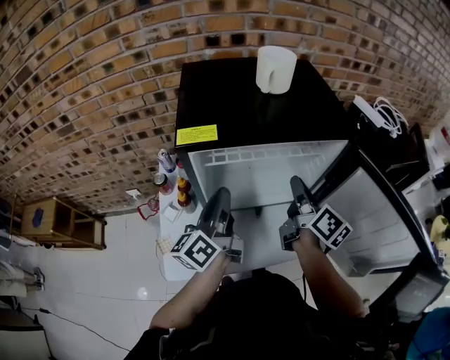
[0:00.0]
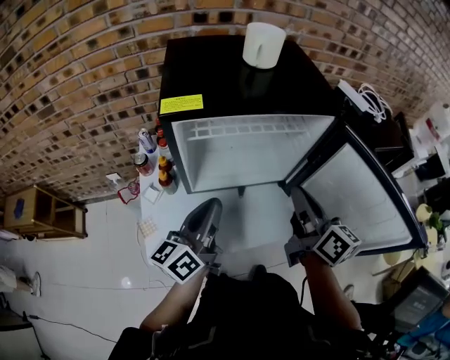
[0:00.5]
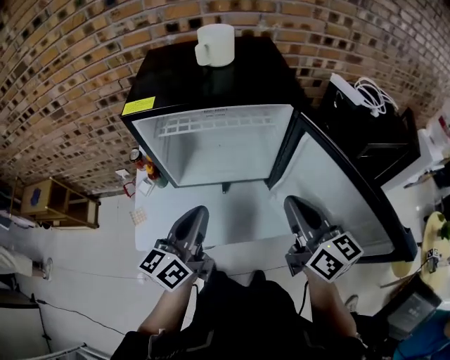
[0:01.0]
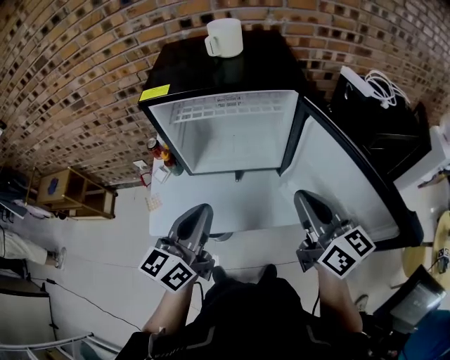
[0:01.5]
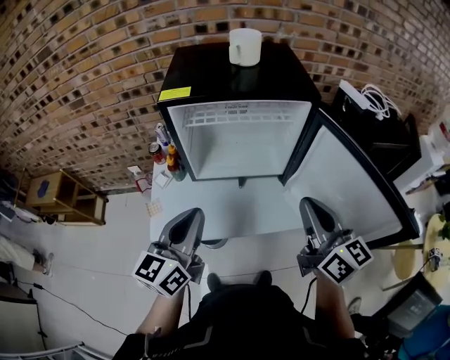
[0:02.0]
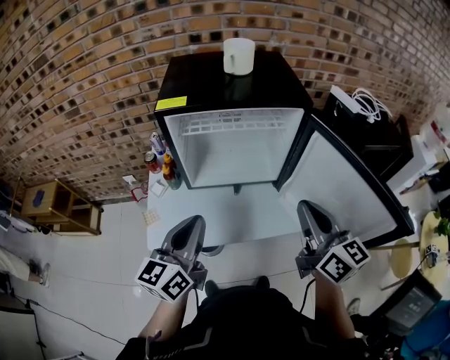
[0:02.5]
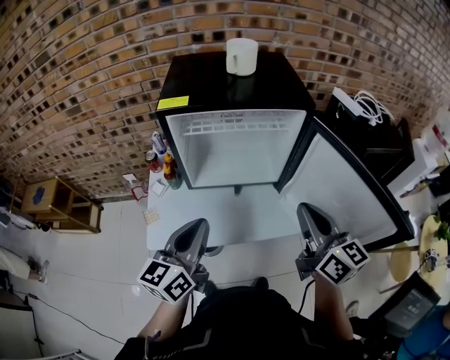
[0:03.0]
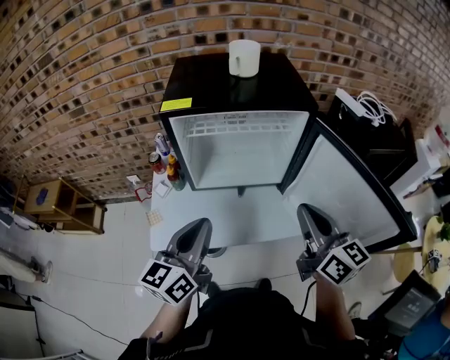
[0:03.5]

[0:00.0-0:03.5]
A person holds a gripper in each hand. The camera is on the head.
0:00.0 to 0:02.0: The two grippers go about 20 cm backward. The right gripper rotates some 30 degrees. The left gripper turns by about 30 degrees.
0:02.0 to 0:03.5: The grippers move only a little.

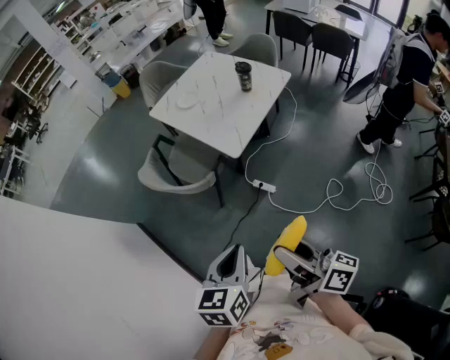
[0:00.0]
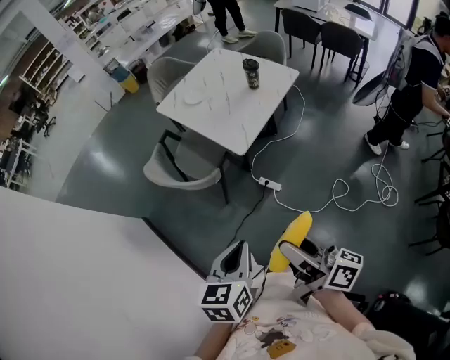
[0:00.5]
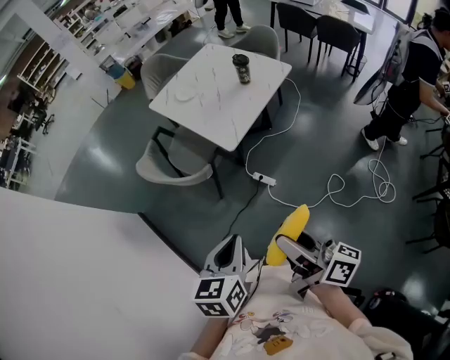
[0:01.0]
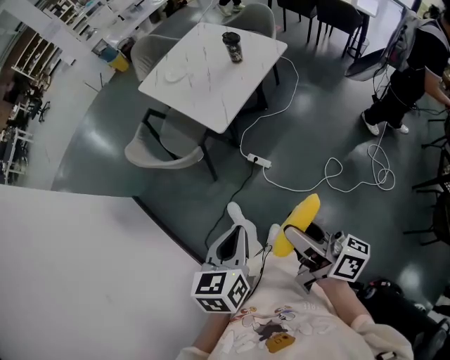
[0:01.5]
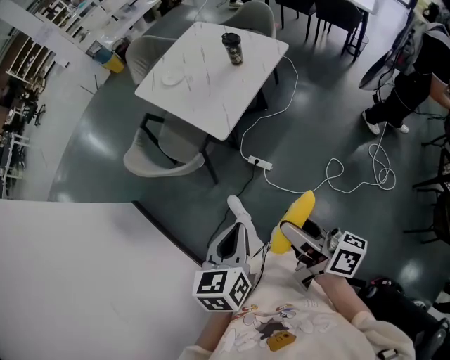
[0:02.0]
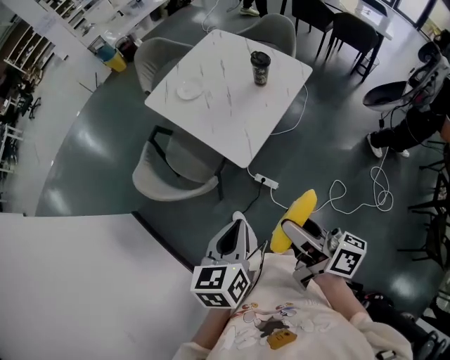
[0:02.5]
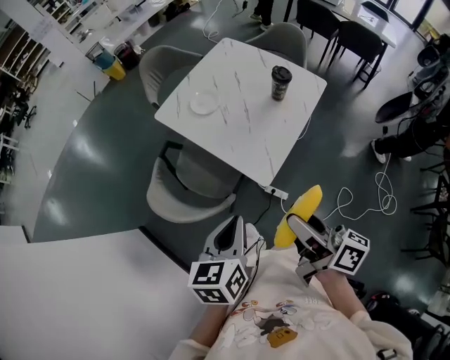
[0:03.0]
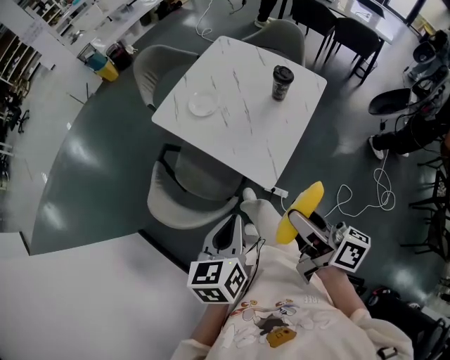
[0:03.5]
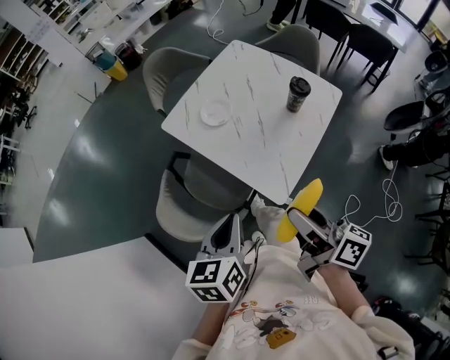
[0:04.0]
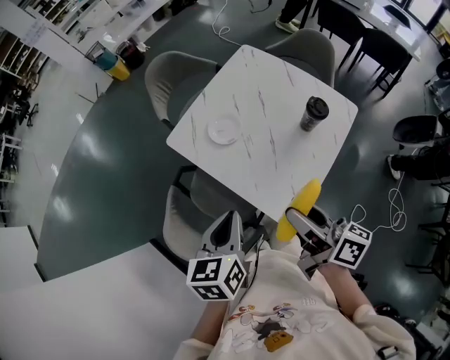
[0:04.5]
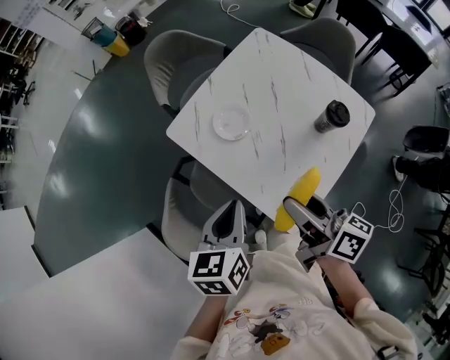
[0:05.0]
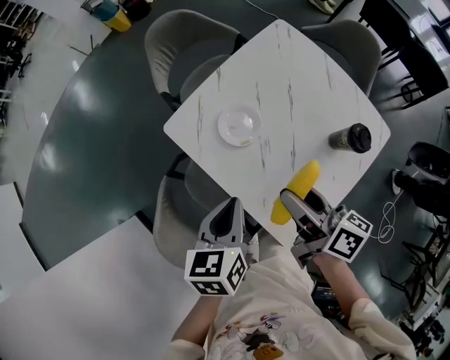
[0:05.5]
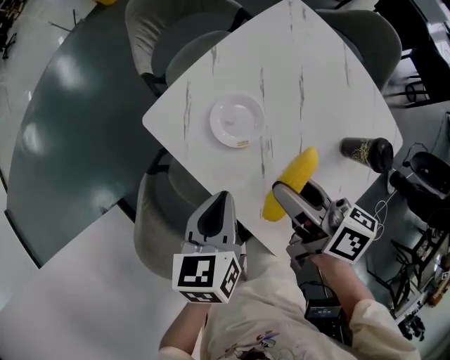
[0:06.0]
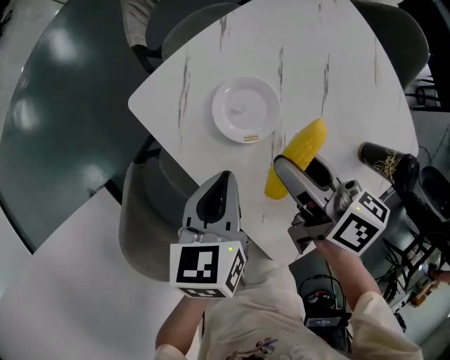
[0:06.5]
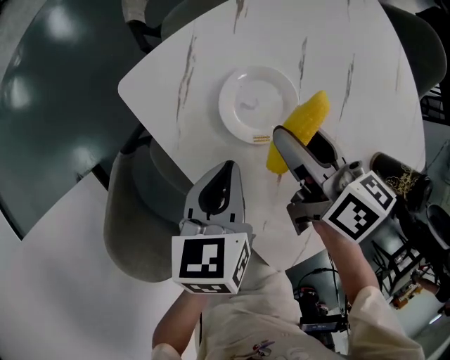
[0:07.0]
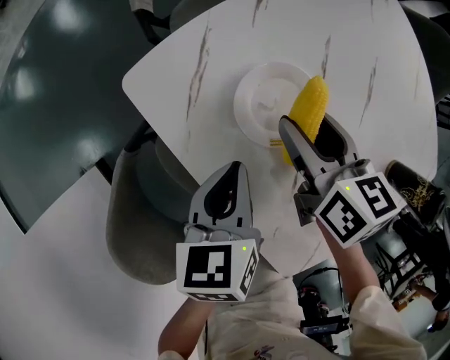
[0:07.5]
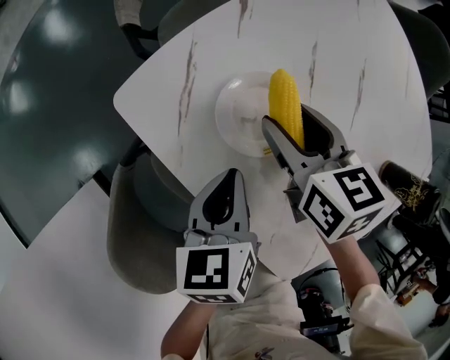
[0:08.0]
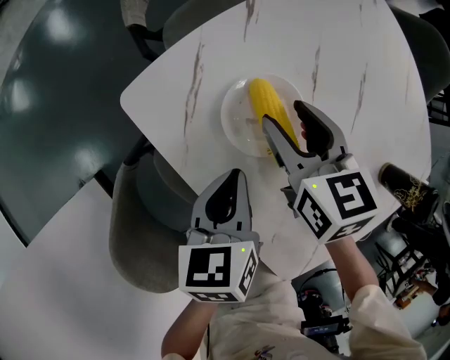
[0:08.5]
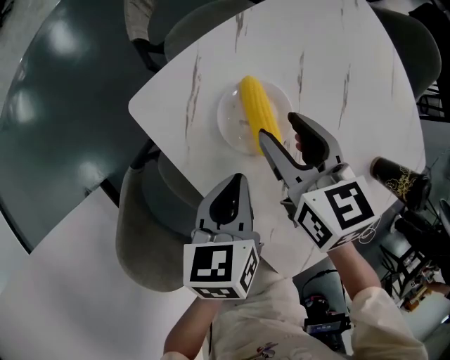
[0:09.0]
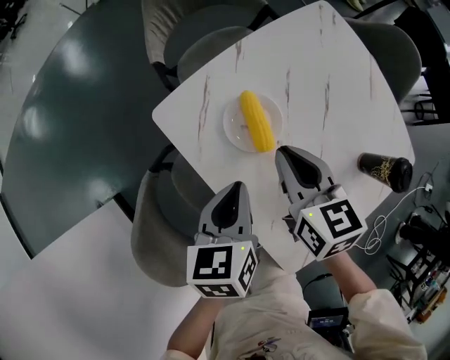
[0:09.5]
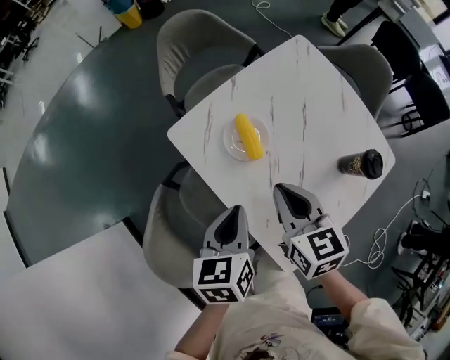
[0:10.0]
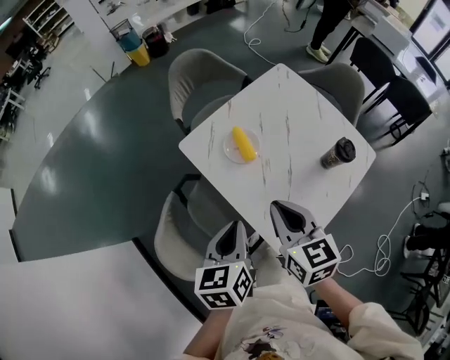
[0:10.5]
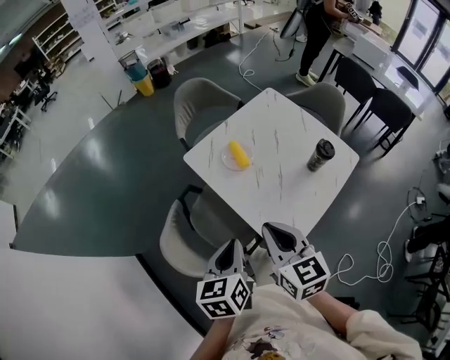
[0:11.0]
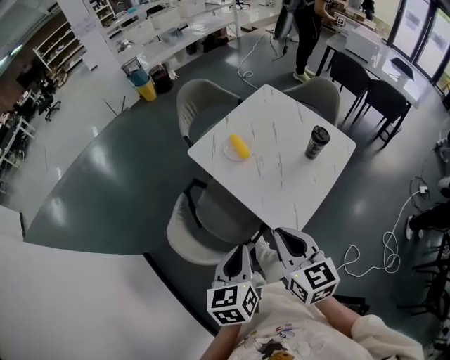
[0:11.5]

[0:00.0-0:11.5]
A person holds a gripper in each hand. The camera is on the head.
0:00.0 to 0:02.0: The right gripper is displaced to the right and forward by roughly 10 cm; the left gripper heads to the right, covering approximately 10 cm.
0:02.0 to 0:04.0: The two grippers travel together, forward and to the left, approximately 40 cm.
0:04.0 to 0:06.0: The grippers both shift forward and downward by approximately 40 cm. The right gripper turns by approximately 20 degrees.
0:06.0 to 0:07.5: The left gripper moves downward, about 15 cm. Meanwhile the right gripper shifts roughly 20 cm downward and forward, and rotates approximately 30 degrees.
0:07.5 to 0:09.5: Both grippers move upward, some 10 cm. The right gripper closes up.
0:09.5 to 0:11.5: Both grippers move backward and upward, roughly 40 cm.

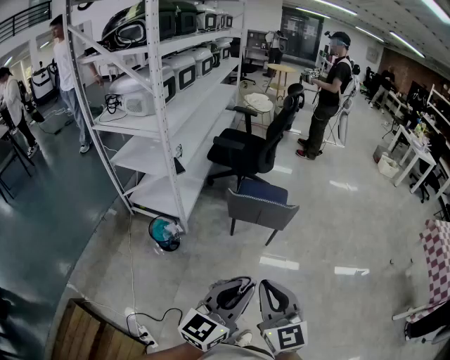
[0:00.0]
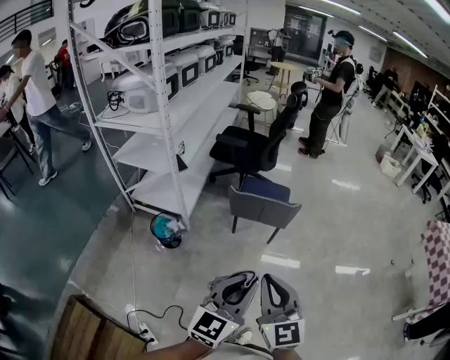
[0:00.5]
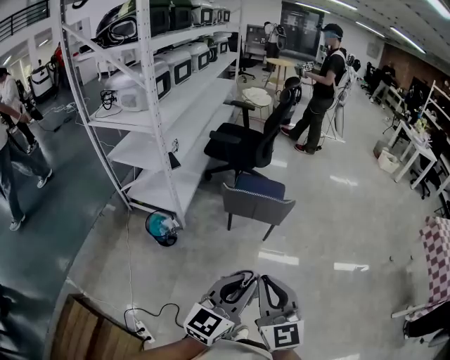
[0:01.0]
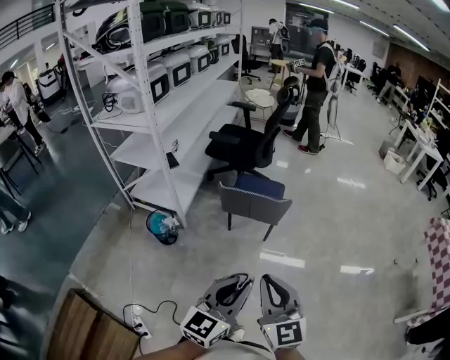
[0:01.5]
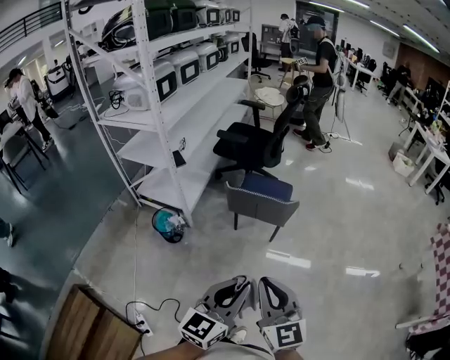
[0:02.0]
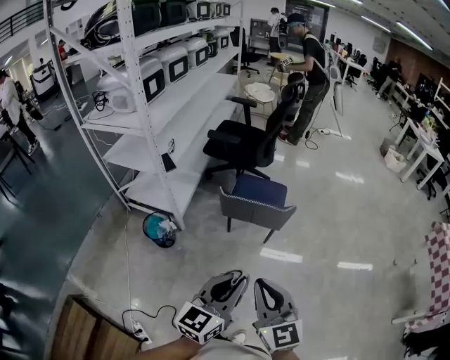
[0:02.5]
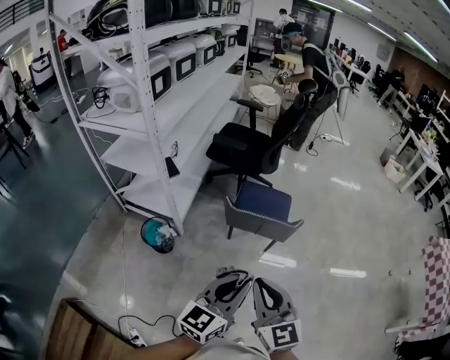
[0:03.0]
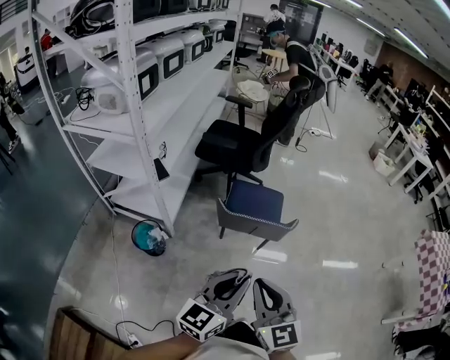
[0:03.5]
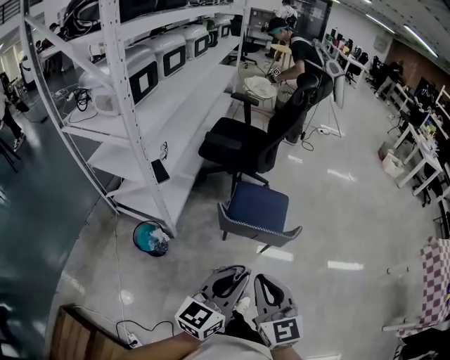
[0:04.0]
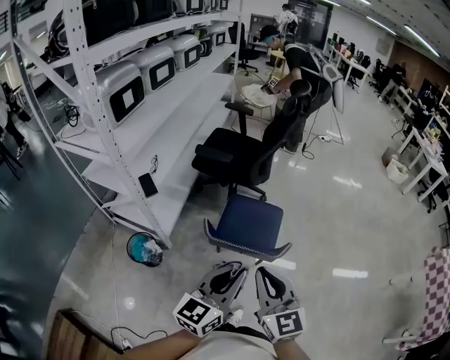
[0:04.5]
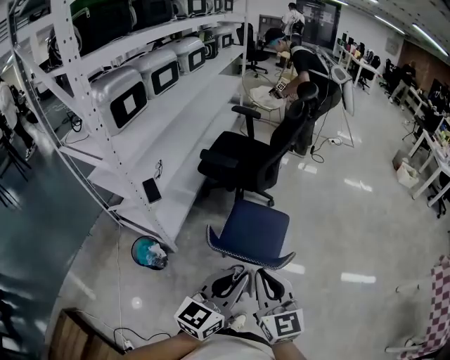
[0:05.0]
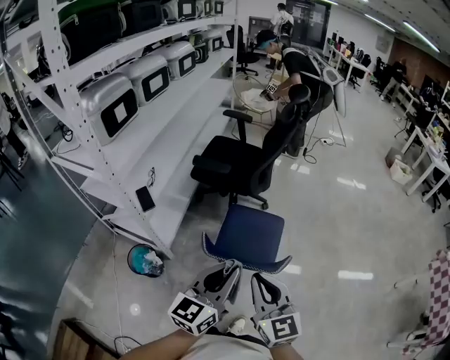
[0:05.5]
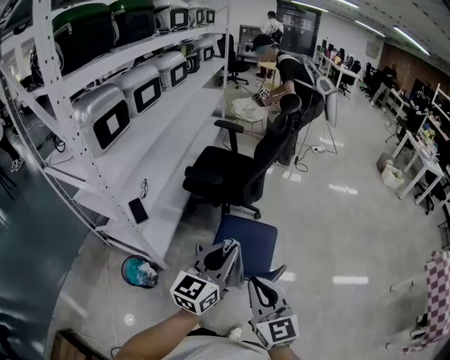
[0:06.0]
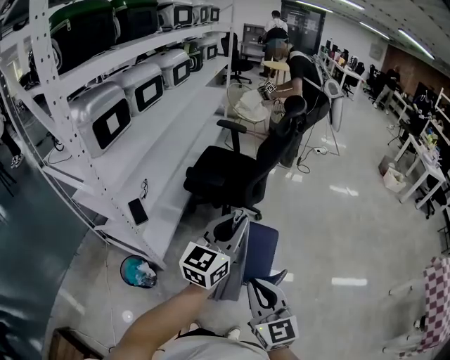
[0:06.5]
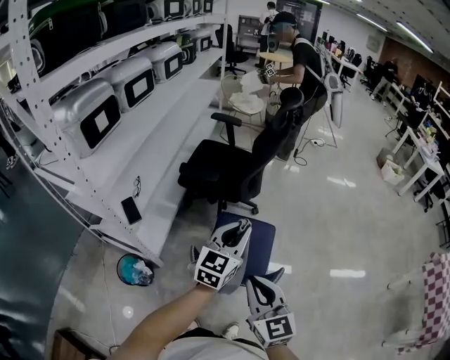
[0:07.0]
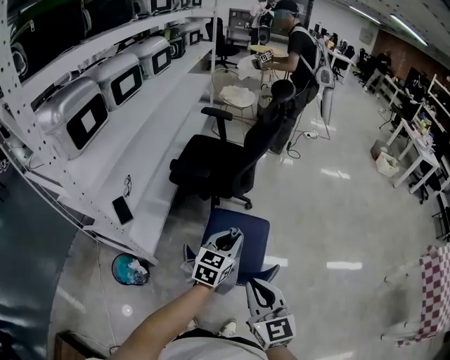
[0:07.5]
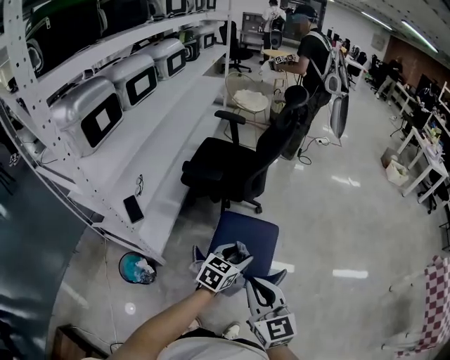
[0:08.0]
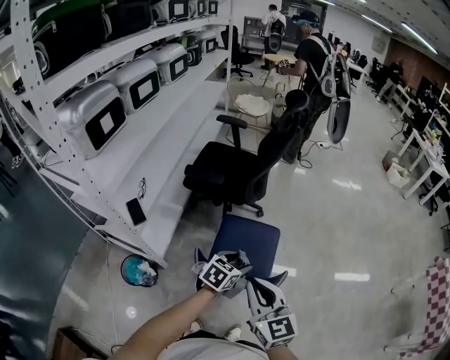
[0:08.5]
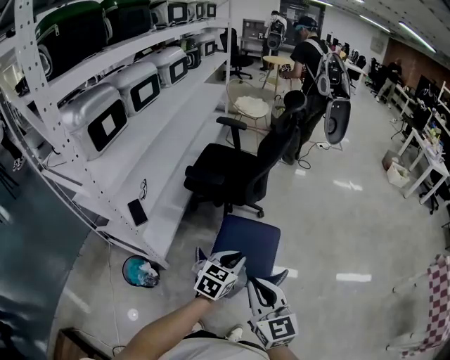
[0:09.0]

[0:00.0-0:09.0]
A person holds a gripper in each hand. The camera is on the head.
0:00.0 to 0:02.0: Both grippers travel together to the right, some 10 cm.
0:02.0 to 0:04.5: Both grippers move forward, approximately 30 cm.
0:04.5 to 0:07.0: The left gripper shifts roughly 25 cm forward. The right gripper moves forward, some 10 cm.
0:07.0 to 0:09.0: The left gripper shifts about 15 cm downward and backward, turns by roughly 20 degrees, and opens, then closes once more.

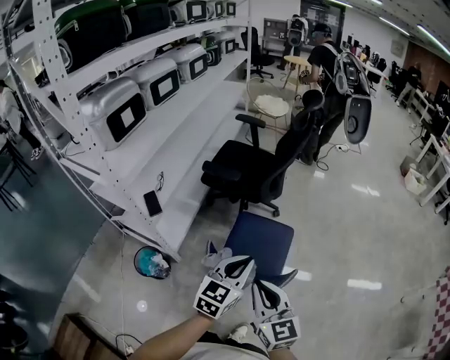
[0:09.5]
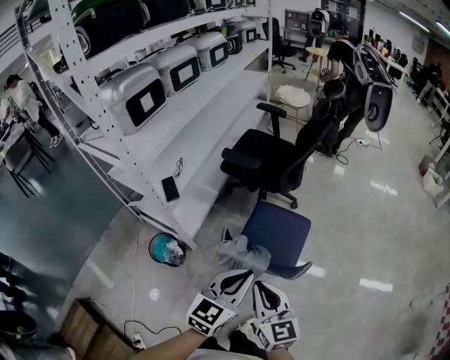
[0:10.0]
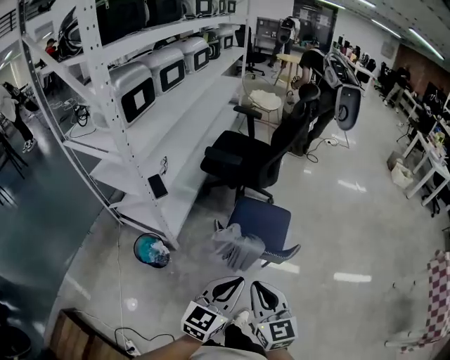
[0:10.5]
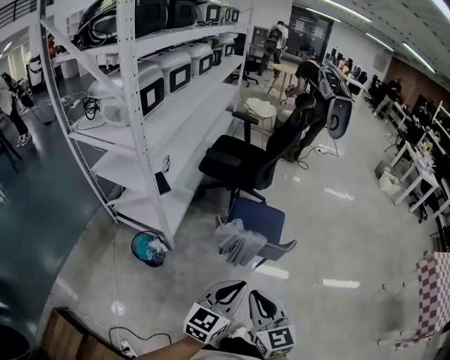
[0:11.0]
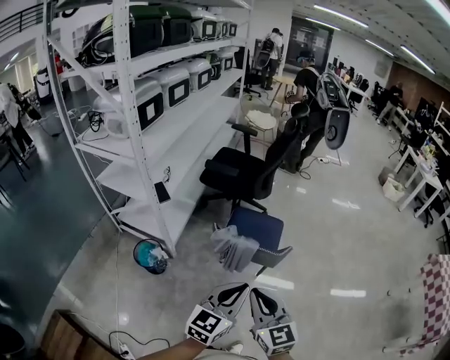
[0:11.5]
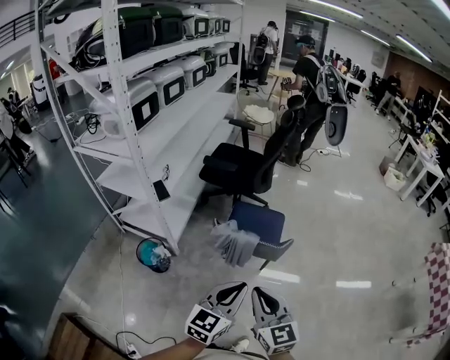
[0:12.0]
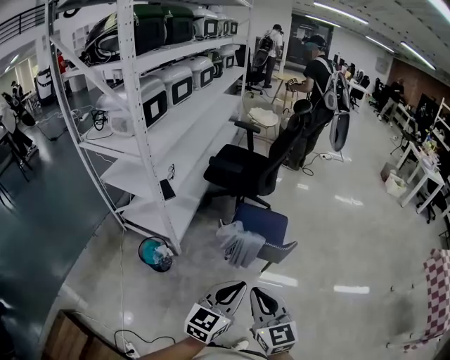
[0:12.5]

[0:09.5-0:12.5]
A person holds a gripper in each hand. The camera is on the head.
0:09.5 to 0:11.0: Both grippers move backward, roughly 25 cm.
0:11.0 to 0:12.5: The grippers stay close to where they were, moving slightly.
